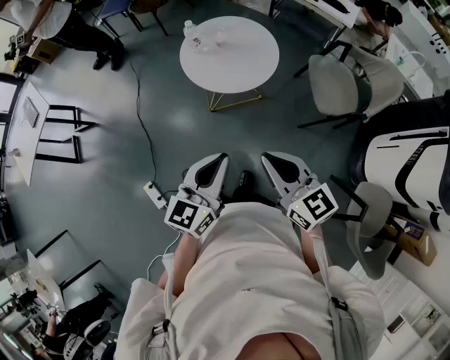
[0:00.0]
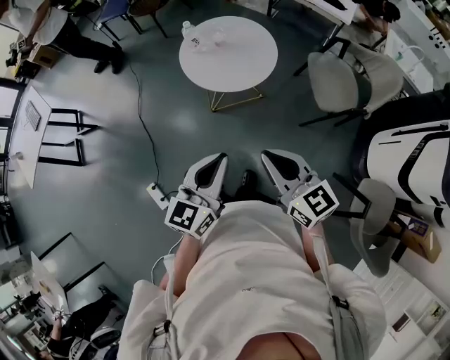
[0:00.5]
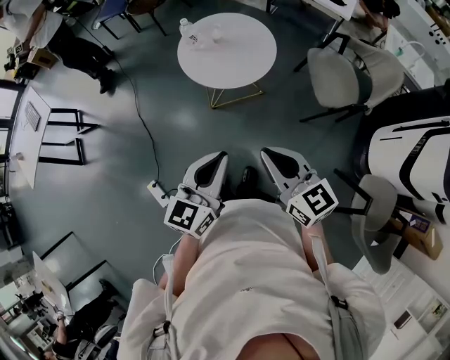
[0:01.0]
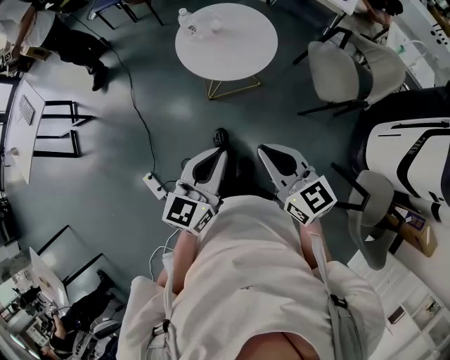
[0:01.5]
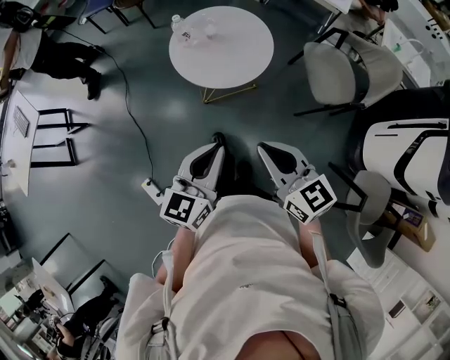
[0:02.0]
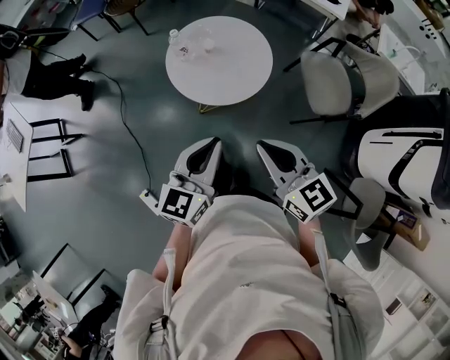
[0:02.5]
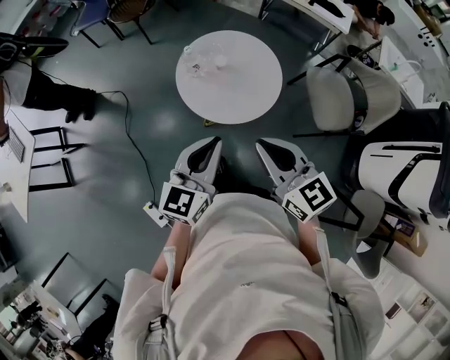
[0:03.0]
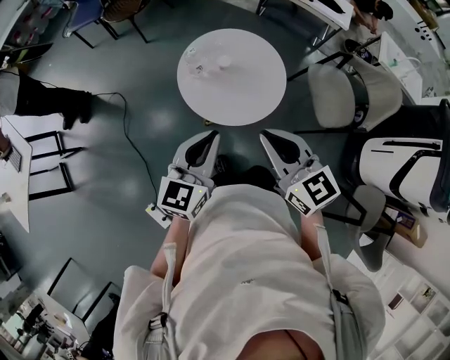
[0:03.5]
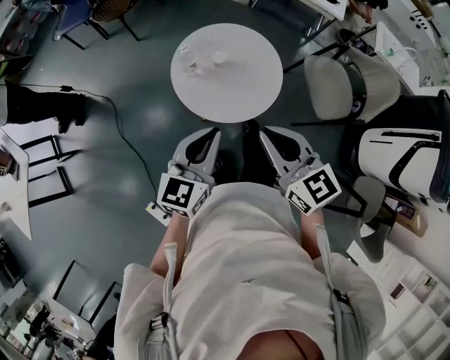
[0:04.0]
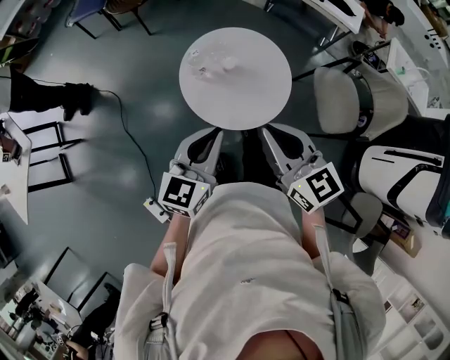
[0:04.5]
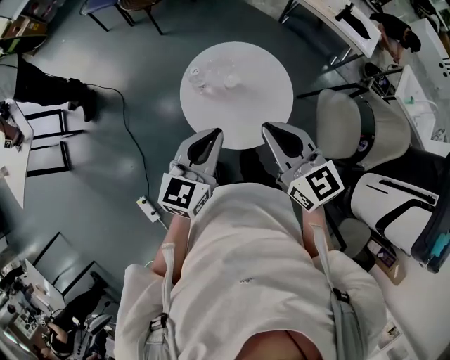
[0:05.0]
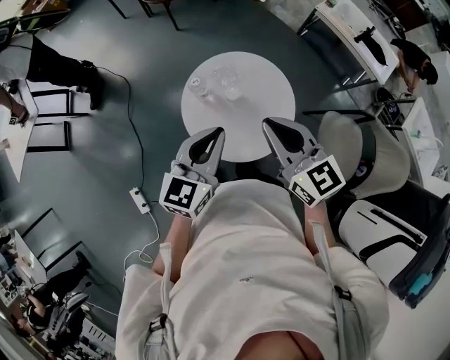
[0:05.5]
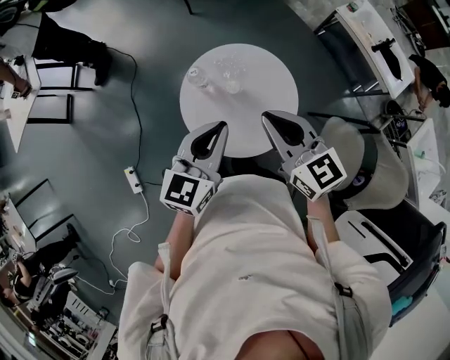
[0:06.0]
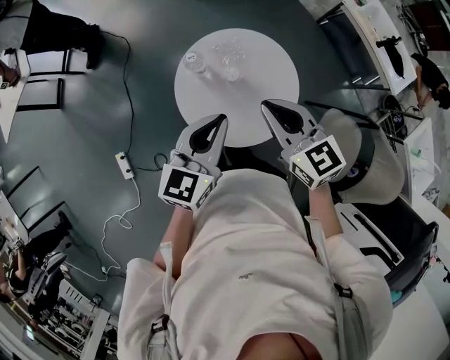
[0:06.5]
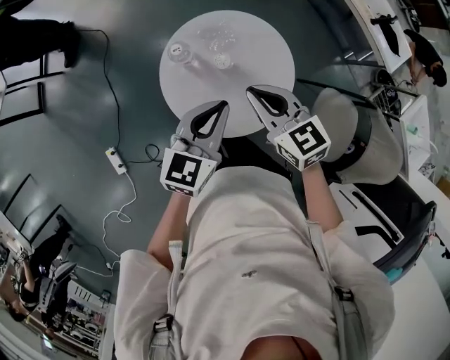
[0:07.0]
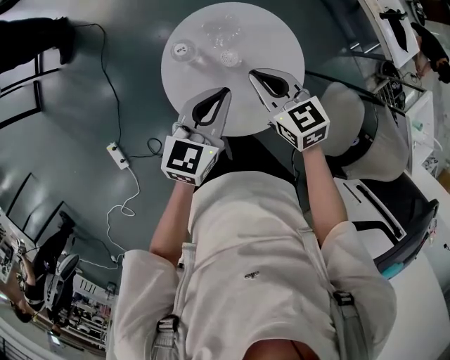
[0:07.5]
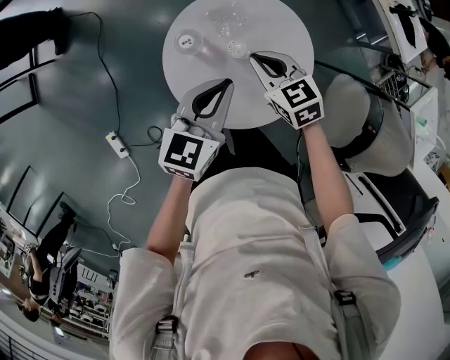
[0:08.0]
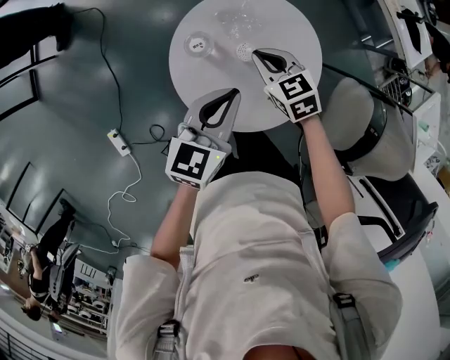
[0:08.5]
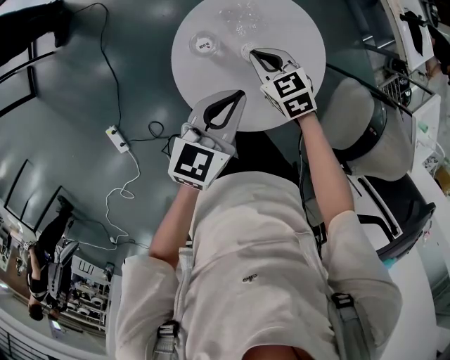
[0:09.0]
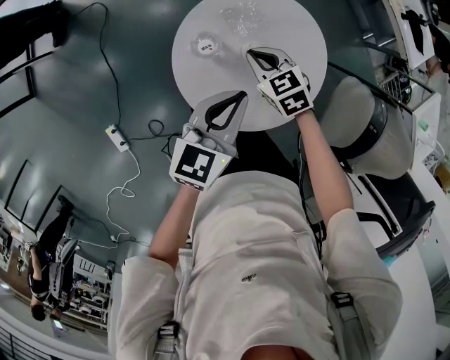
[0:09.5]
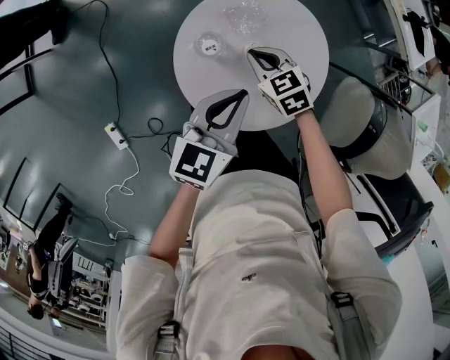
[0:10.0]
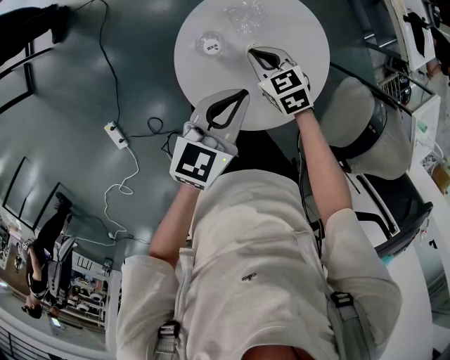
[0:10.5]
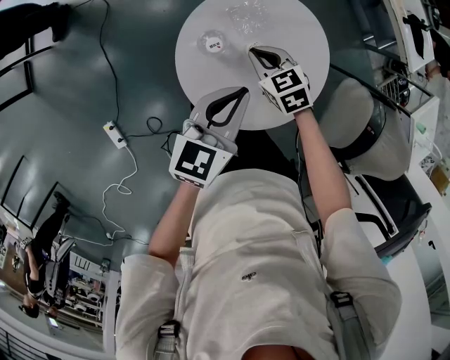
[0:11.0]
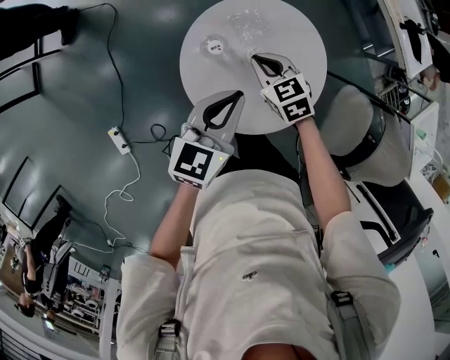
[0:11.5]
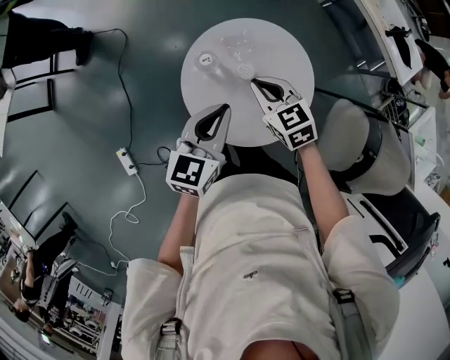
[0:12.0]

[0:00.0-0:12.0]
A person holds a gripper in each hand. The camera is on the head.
0:00.0 to 0:02.0: The left gripper goes approximately 5 cm forward.
0:02.0 to 0:04.0: The two grippers go approximately 25 cm forward and to the left.
0:04.0 to 0:06.0: The right gripper shifts by roughly 25 cm, and rotates approximately 30 degrees, while the left gripper moves approximately 20 cm, and swivels about 30 degrees.
0:06.0 to 0:08.0: The left gripper heads downward and forward, covering roughly 15 cm. Meanwhile the right gripper travels downward and forward by some 30 cm, and rotates some 30 degrees.
0:08.0 to 0:10.0: The right gripper goes about 5 cm downward.
0:10.0 to 0:12.0: The left gripper is displaced upward by some 5 cm. Meanwhile the right gripper travels upward by approximately 10 cm.

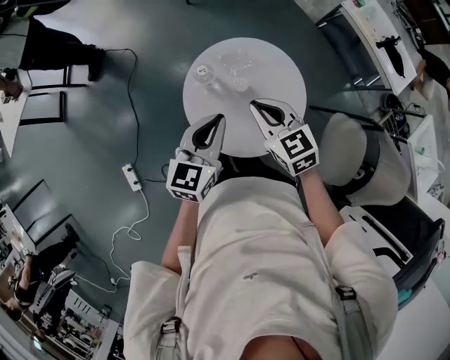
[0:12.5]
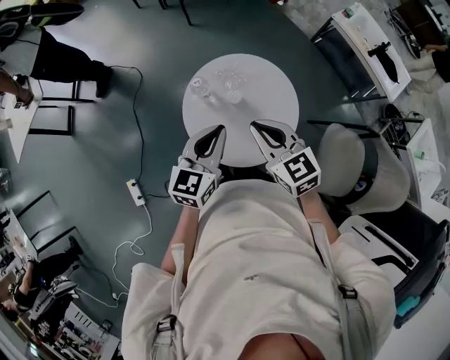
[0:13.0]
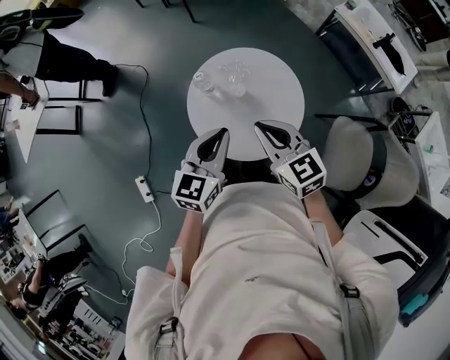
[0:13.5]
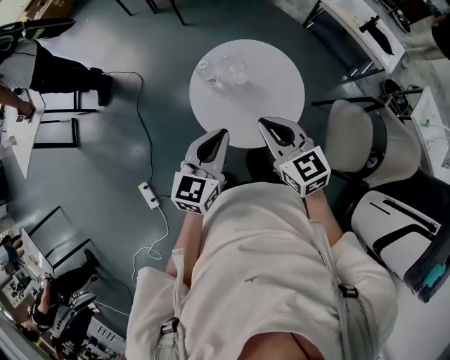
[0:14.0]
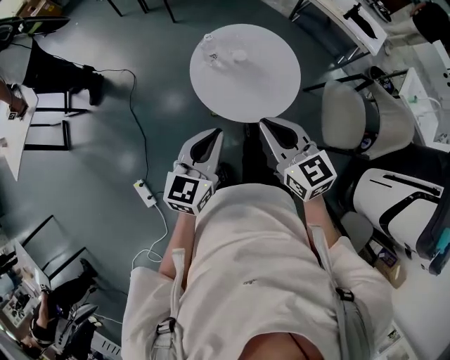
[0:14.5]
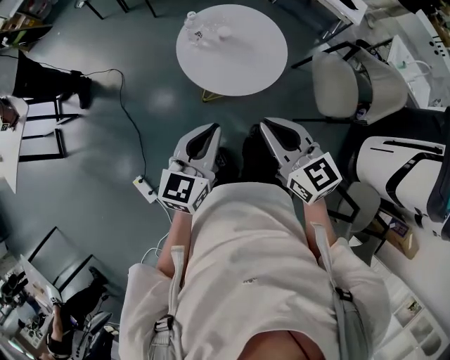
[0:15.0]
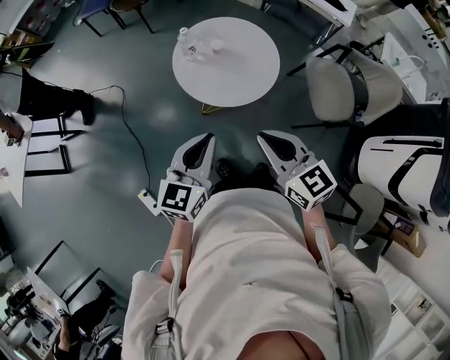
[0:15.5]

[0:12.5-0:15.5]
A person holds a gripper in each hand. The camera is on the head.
0:12.5 to 0:14.0: The left gripper goes about 10 cm backward. The right gripper heads backward and upward, covering approximately 15 cm.
0:14.0 to 0:15.5: Both grippers move backward, some 25 cm.

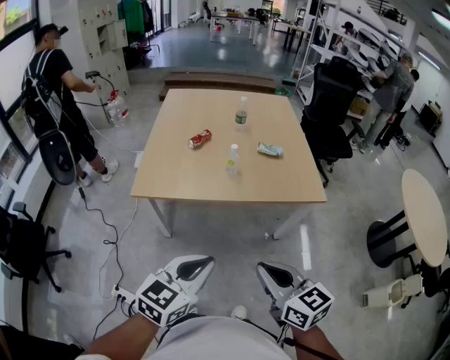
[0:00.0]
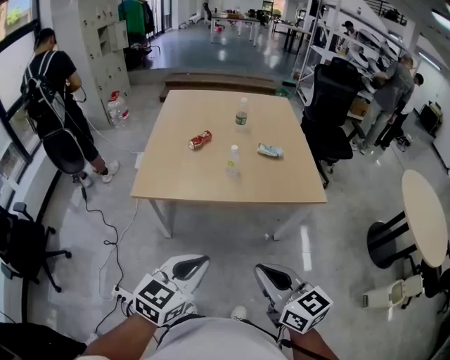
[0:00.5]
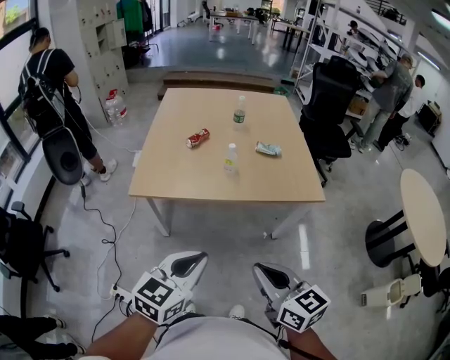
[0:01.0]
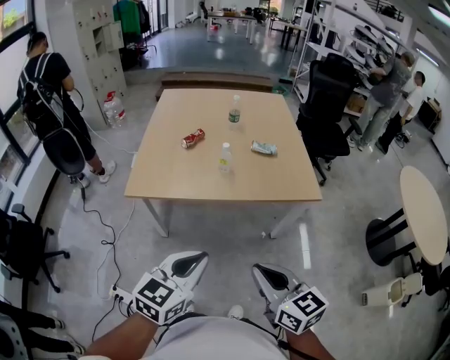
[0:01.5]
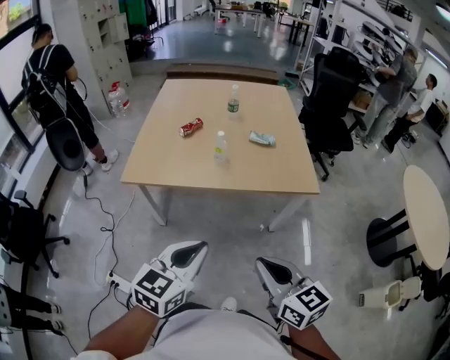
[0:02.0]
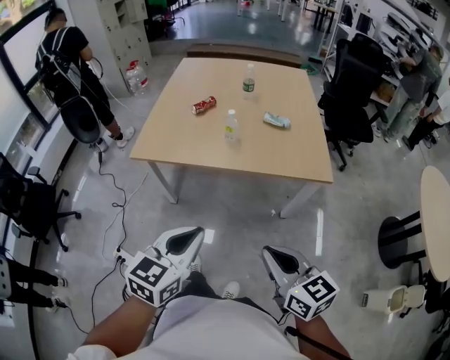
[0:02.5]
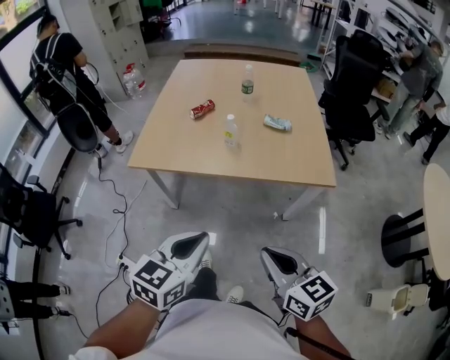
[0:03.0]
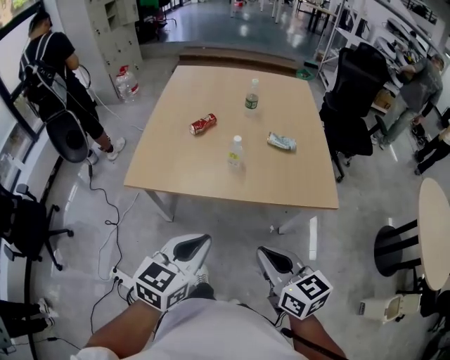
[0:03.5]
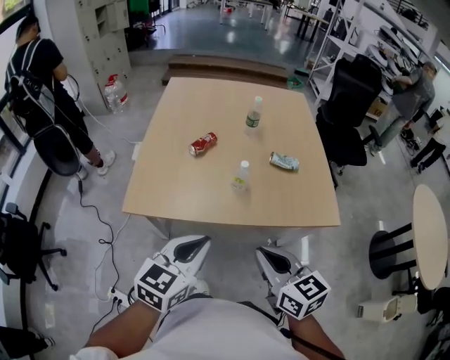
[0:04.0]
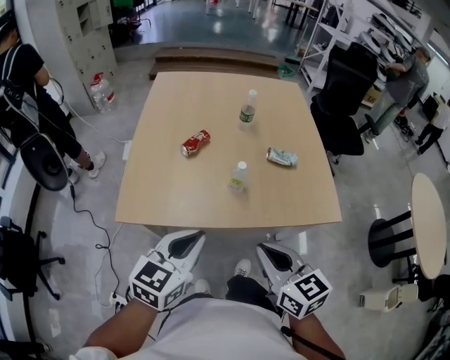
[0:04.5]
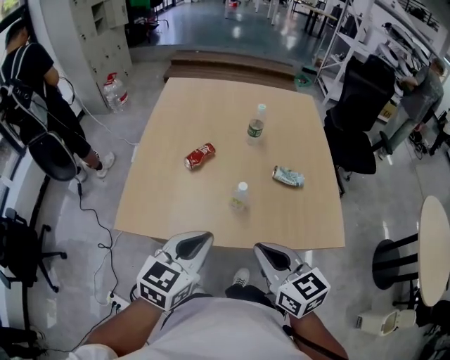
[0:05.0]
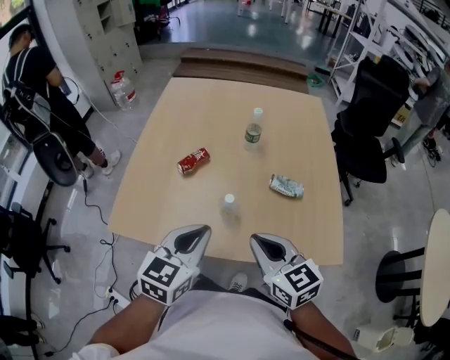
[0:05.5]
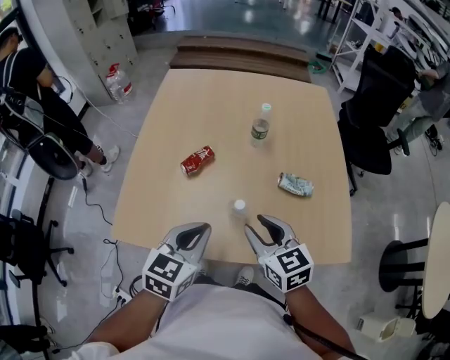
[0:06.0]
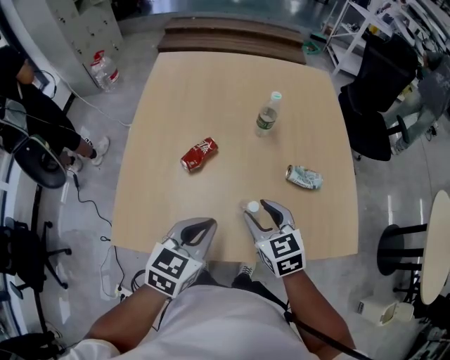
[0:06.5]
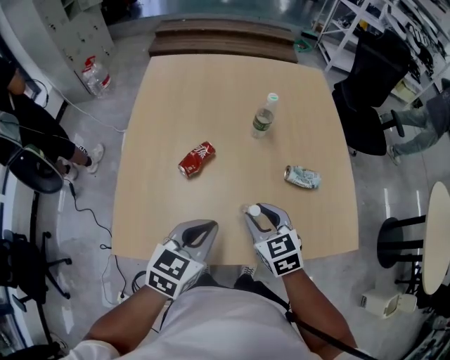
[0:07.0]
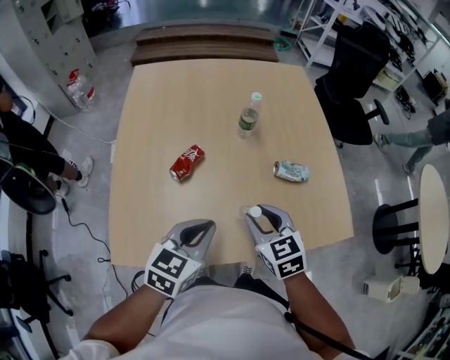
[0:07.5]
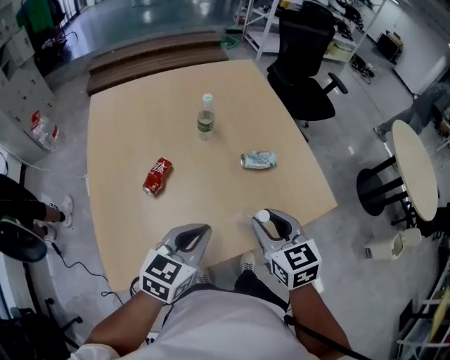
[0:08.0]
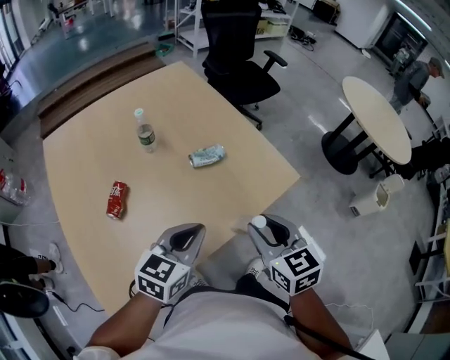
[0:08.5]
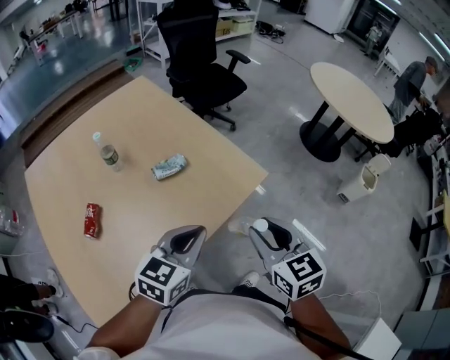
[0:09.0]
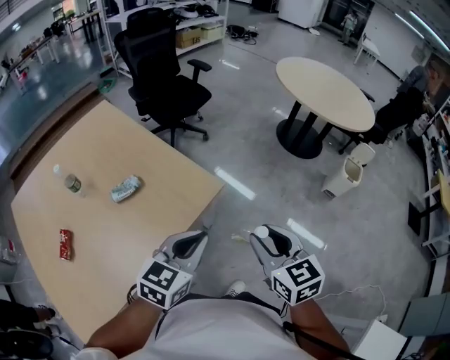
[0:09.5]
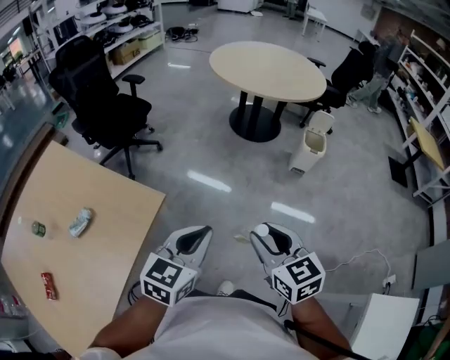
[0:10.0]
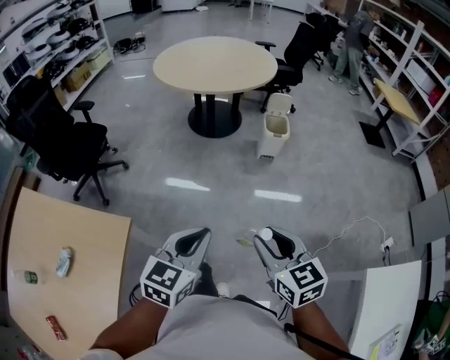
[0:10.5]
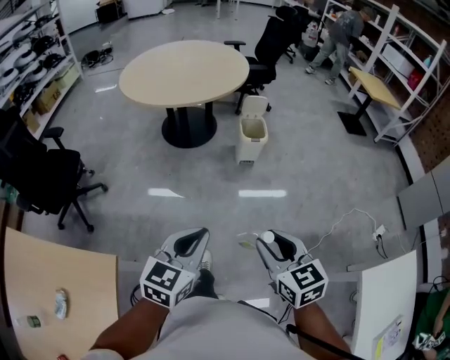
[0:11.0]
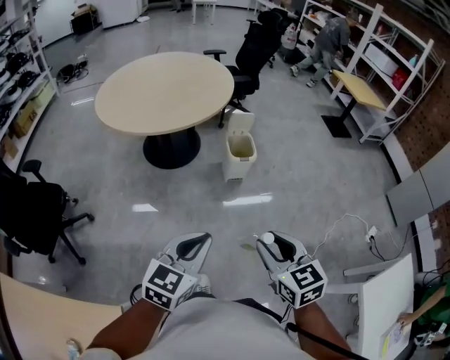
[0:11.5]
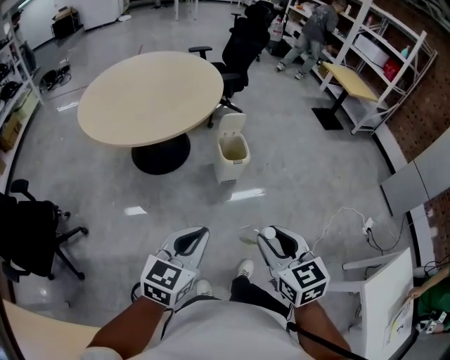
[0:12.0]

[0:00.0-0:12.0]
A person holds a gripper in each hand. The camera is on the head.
0:00.0 to 0:02.0: The two grippers go approximately 5 cm to the right.
0:02.0 to 0:04.0: The grippers both shift forward by about 20 cm.
0:04.0 to 0:06.0: Both grippers travel together forward, about 20 cm. The right gripper opens up.
0:06.0 to 0:08.0: The left gripper changes its angle by roughly 30 degrees. The right gripper reaches roughly 5 cm downward, then returns, and changes its angle by approximately 30 degrees.
0:08.0 to 0:10.0: The pair of grippers is taken roughly 50 cm. The left gripper changes its angle by some 50 degrees, while the right gripper changes its angle by roughly 50 degrees.
0:10.0 to 0:12.0: The right gripper ends up some 30 cm from where it was, and swivels approximately 40 degrees, while the left gripper changes place by some 35 cm, and swivels some 30 degrees.
